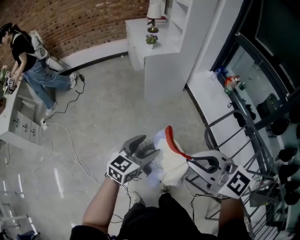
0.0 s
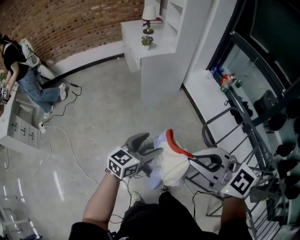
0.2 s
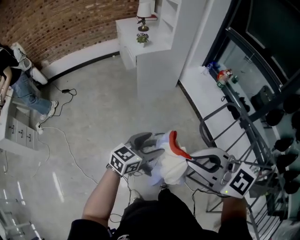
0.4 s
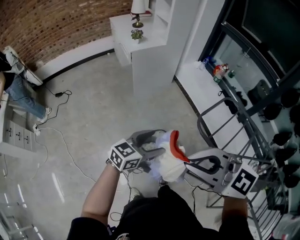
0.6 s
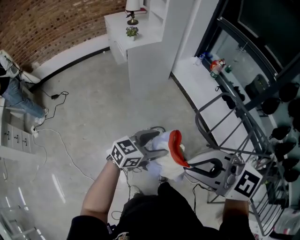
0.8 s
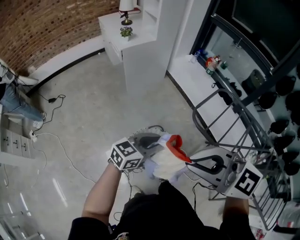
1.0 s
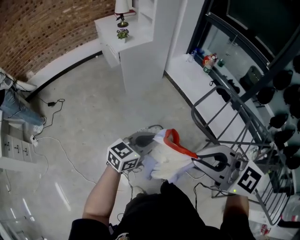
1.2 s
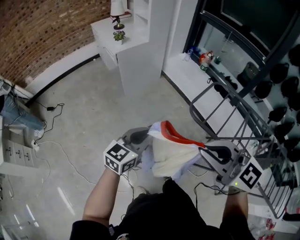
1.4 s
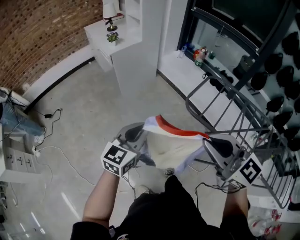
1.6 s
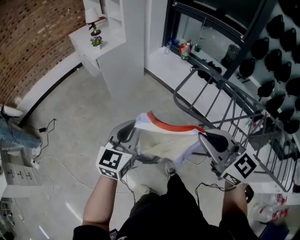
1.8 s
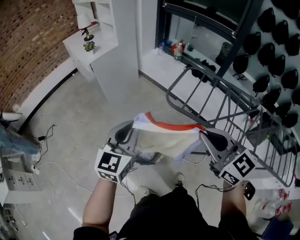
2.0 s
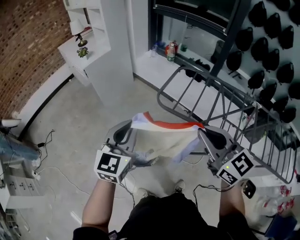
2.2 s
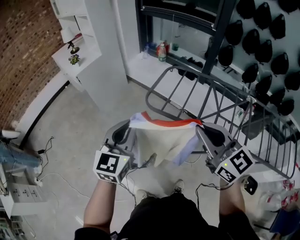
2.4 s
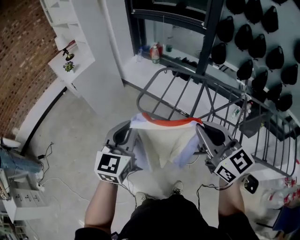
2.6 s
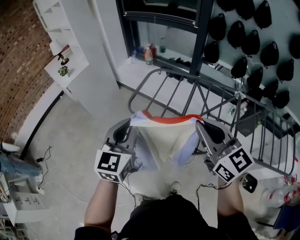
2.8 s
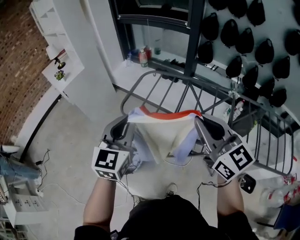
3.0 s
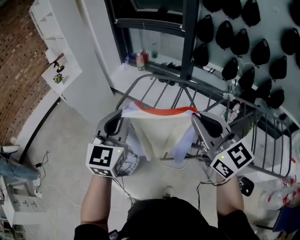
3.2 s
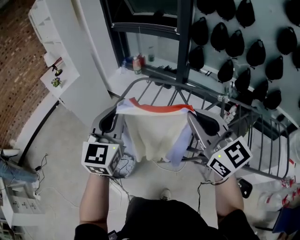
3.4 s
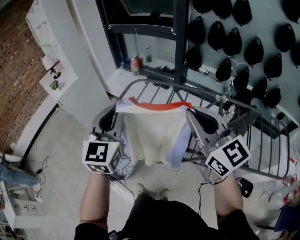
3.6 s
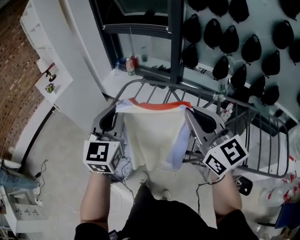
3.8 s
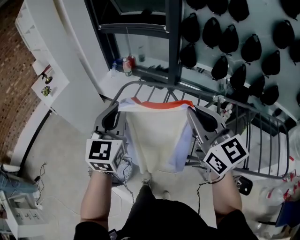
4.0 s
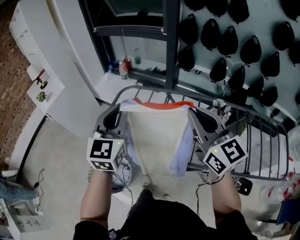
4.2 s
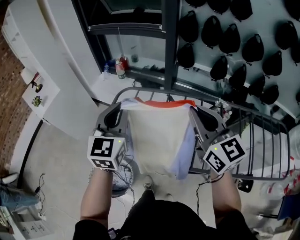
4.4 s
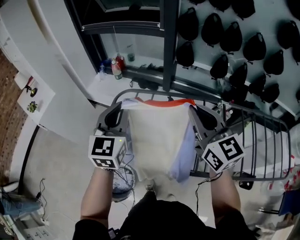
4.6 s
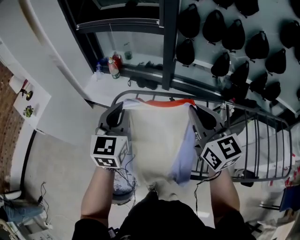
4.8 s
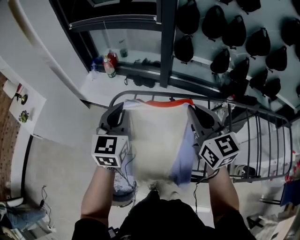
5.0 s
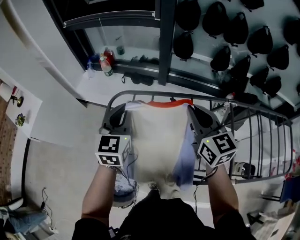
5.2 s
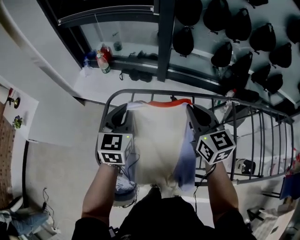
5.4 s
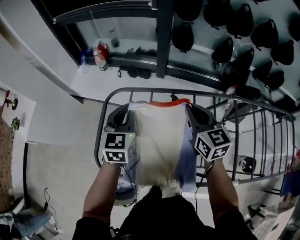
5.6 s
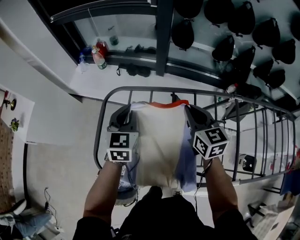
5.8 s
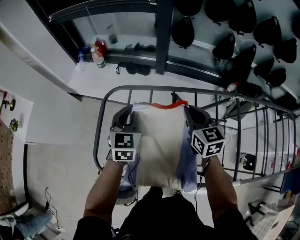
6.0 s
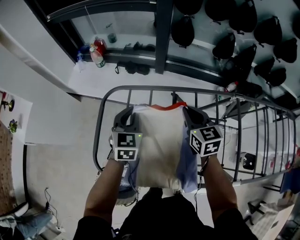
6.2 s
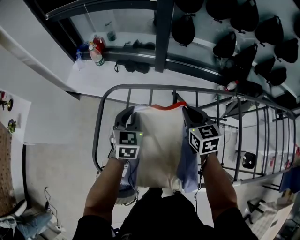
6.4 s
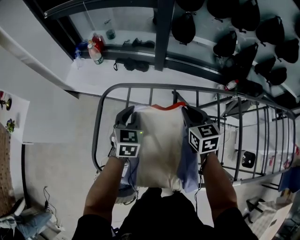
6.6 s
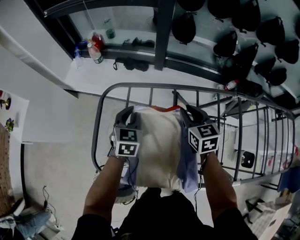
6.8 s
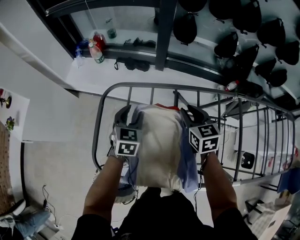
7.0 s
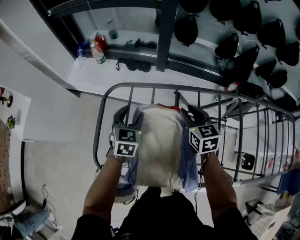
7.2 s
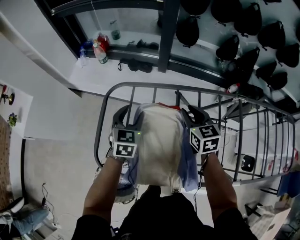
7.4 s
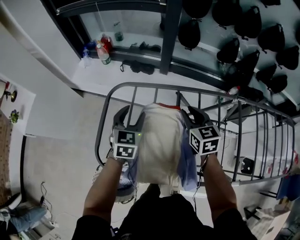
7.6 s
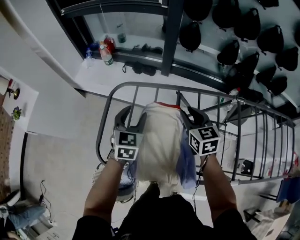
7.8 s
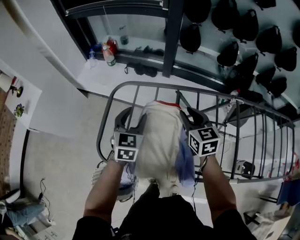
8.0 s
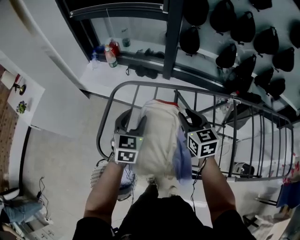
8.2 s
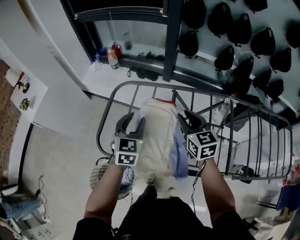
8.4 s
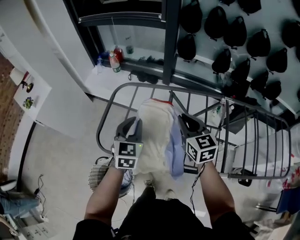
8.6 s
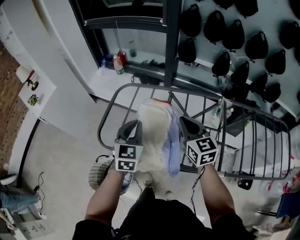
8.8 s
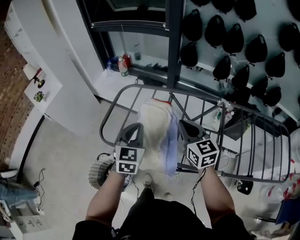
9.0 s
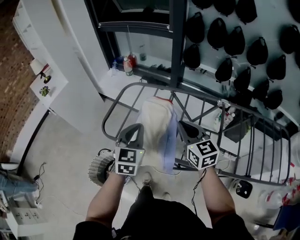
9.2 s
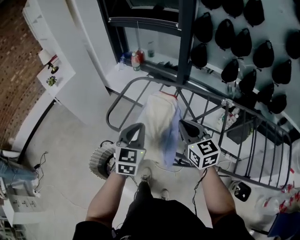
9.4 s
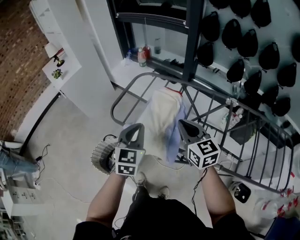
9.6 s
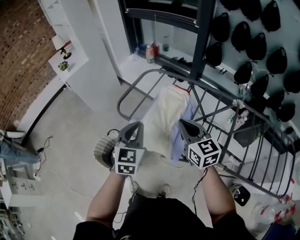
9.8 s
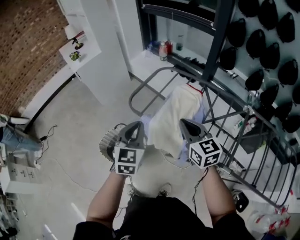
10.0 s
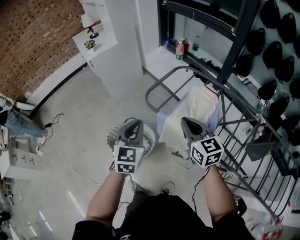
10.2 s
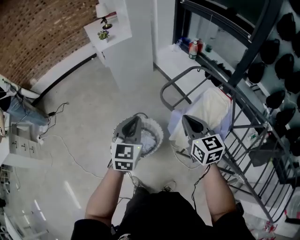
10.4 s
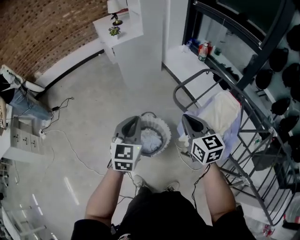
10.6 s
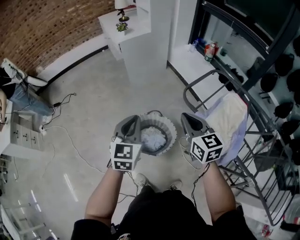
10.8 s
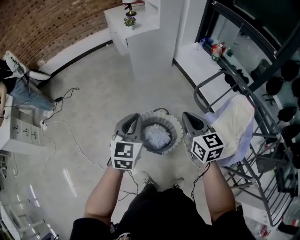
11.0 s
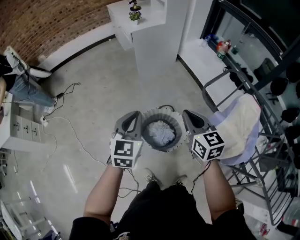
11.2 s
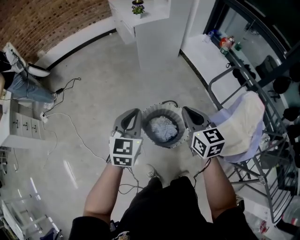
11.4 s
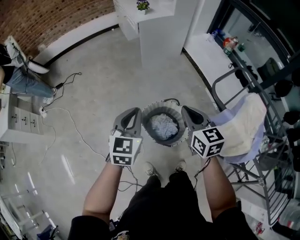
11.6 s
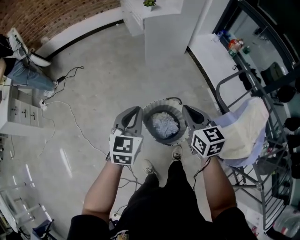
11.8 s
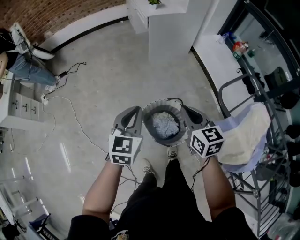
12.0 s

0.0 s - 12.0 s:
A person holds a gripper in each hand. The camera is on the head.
0.0 s - 1.6 s: The right gripper shifts by approximately 10 cm, and swivels some 30 degrees, while the left gripper is displaced upward by about 5 cm, and closes its fingers.
1.6 s - 3.0 s: Both grippers move to the right, some 35 cm. The right gripper changes its angle by some 30 degrees.
3.0 s - 4.4 s: Both grippers move forward and to the right, about 20 cm.
4.4 s - 6.0 s: Both grippers move downward and forward, roughly 35 cm. The left gripper turns by about 20 degrees; the right gripper rotates about 30 degrees.
6.0 s - 7.6 s: The left gripper opens; the right gripper opens its fingers.
7.6 s - 9.0 s: The grippers both shift backward and upward by some 25 cm. The left gripper closes its fingers. Meanwhile the right gripper changes its angle by about 20 degrees, and closes.
9.0 s - 10.4 s: The left gripper shifts by about 35 cm, and changes its angle by about 30 degrees; the right gripper changes place by roughly 30 cm, and swivels approximately 30 degrees.
10.4 s - 12.0 s: The right gripper heads to the left and forward, covering about 30 cm, while the left gripper is displaced to the left by some 30 cm.

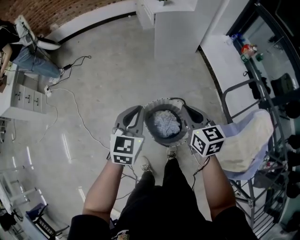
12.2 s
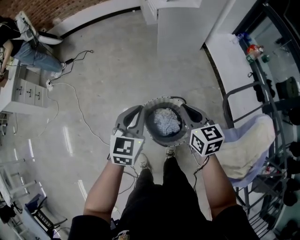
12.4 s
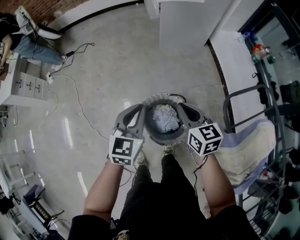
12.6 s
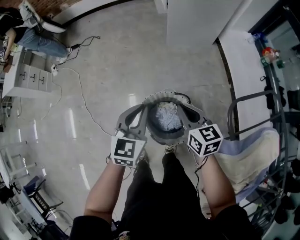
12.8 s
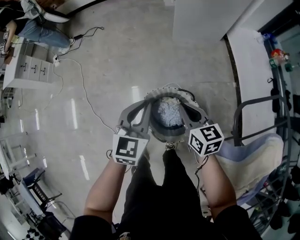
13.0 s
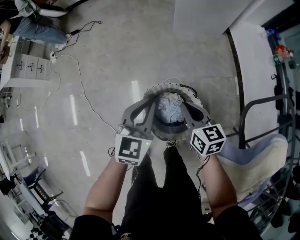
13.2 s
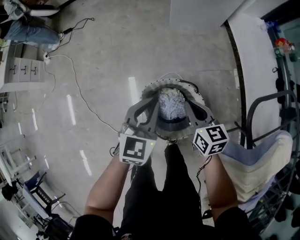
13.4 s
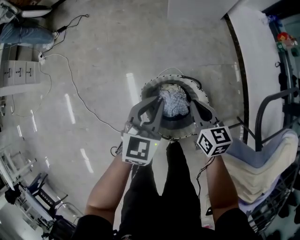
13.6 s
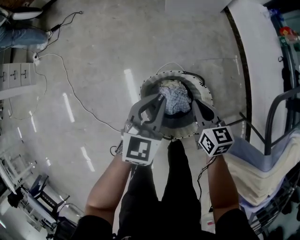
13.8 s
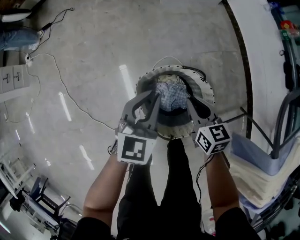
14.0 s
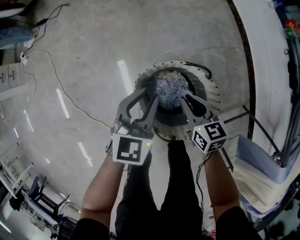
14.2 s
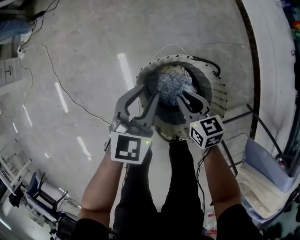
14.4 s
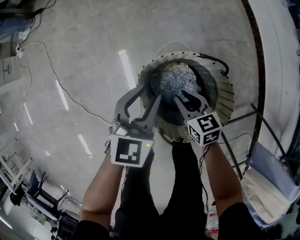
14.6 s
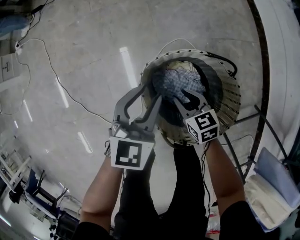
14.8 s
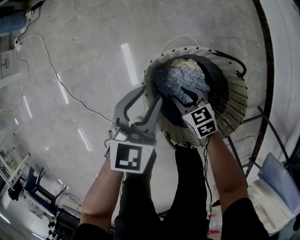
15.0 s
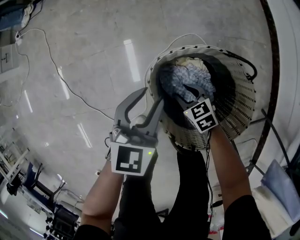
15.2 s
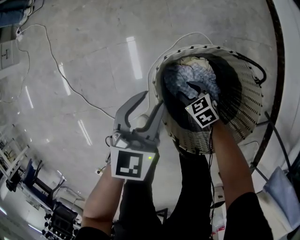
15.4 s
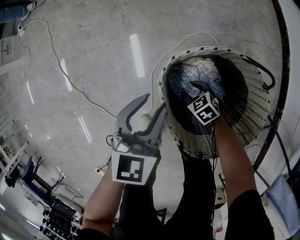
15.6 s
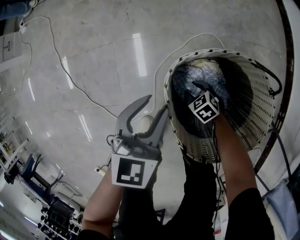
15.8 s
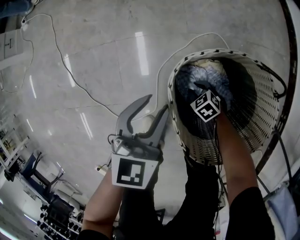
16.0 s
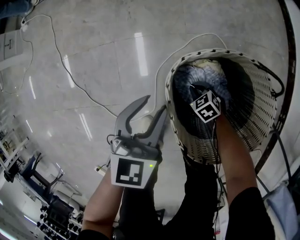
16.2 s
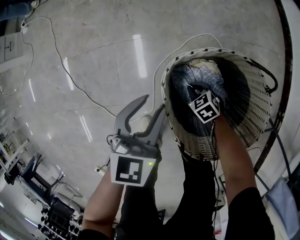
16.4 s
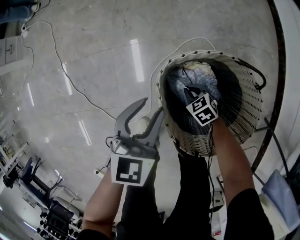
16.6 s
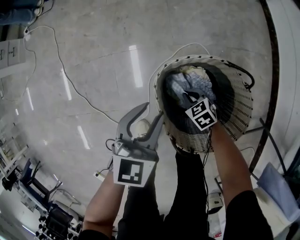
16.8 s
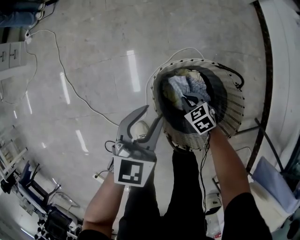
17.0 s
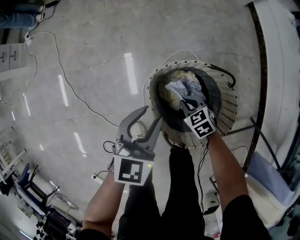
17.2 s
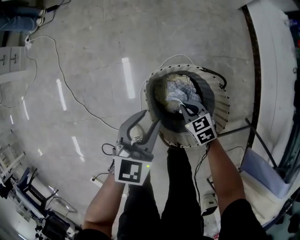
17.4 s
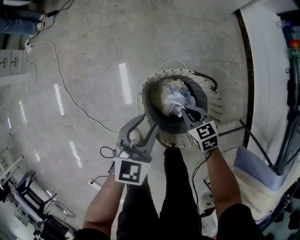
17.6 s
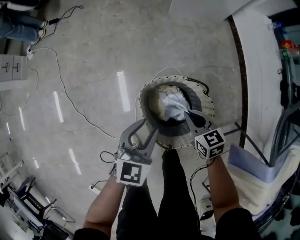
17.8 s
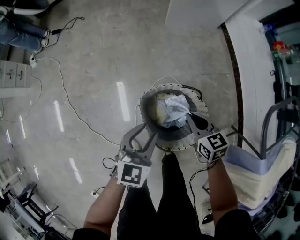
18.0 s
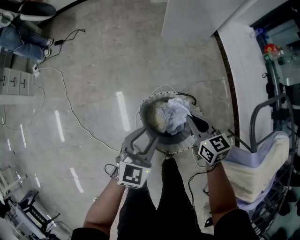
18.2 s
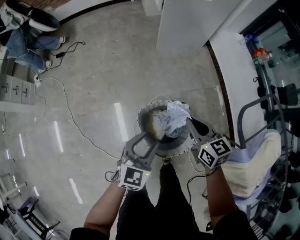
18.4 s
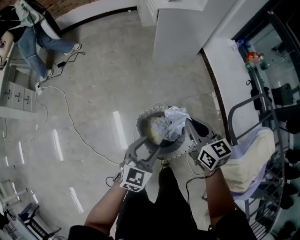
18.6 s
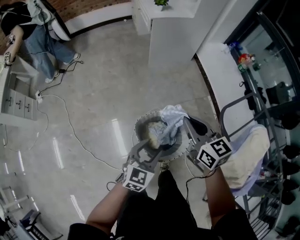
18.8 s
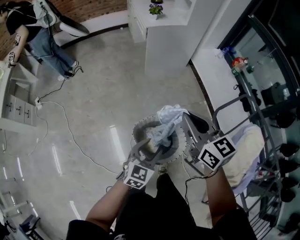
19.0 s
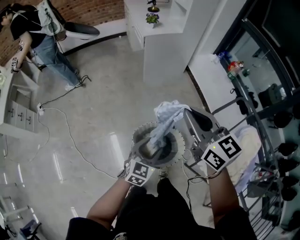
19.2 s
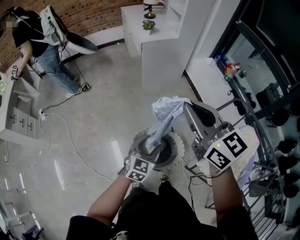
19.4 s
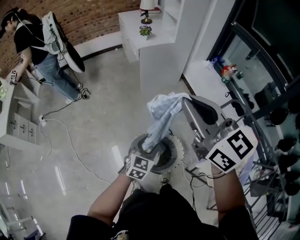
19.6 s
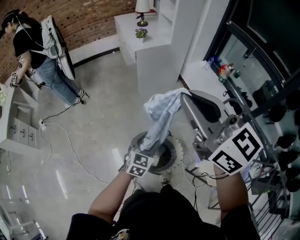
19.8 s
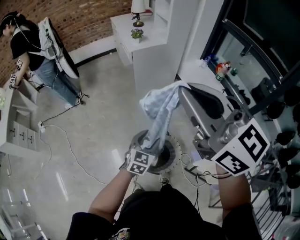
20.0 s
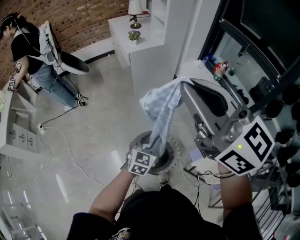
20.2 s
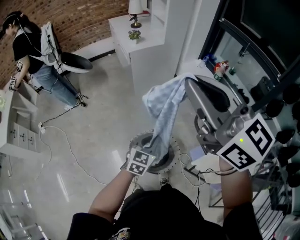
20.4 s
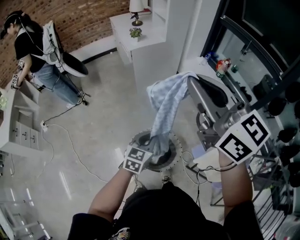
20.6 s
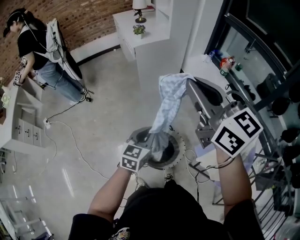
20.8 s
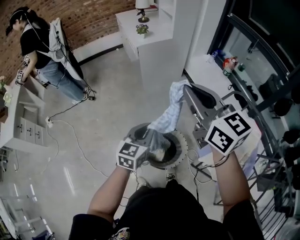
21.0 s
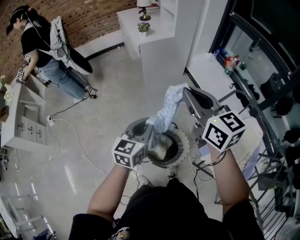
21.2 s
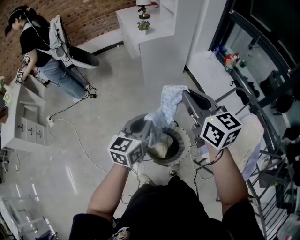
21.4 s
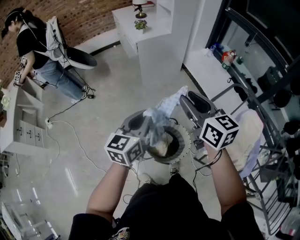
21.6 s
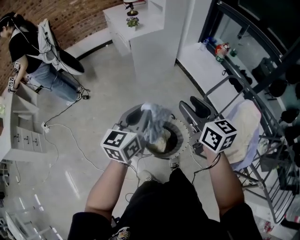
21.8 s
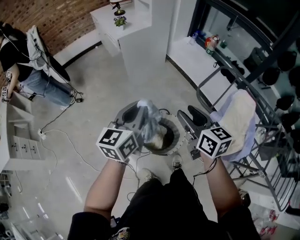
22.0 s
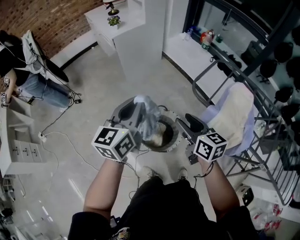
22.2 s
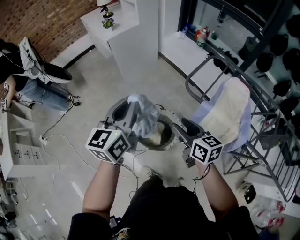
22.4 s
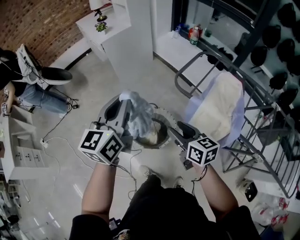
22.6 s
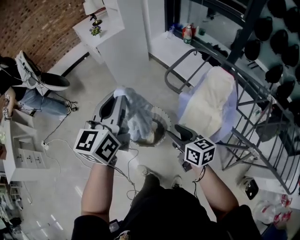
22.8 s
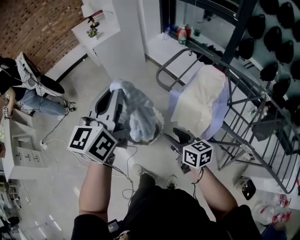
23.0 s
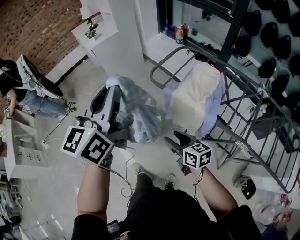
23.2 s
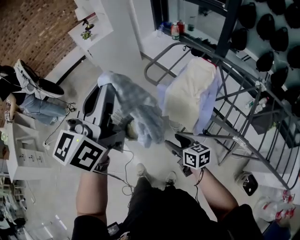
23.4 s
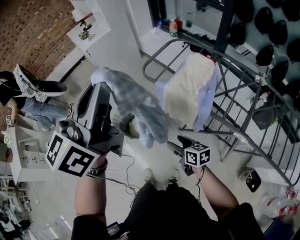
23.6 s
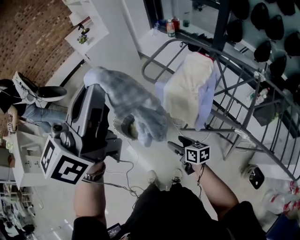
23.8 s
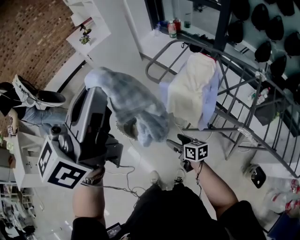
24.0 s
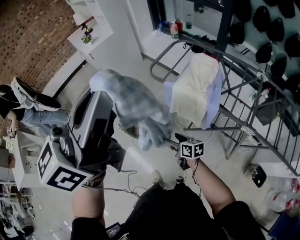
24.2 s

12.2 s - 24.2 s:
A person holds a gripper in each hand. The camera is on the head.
12.2 s - 13.8 s: The grippers both shift downward by some 25 cm.
13.8 s - 15.2 s: The right gripper goes approximately 35 cm downward, rotates approximately 40 degrees, and opens up; the left gripper is displaced downward and to the left by roughly 25 cm, and opens up.
15.2 s - 16.6 s: The right gripper travels downward by approximately 5 cm, and closes its fingers.
16.6 s - 18.2 s: The right gripper moves upward, some 50 cm, and points its fingers roughly 30 degrees further upward, while the left gripper heads upward, covering some 30 cm.
18.2 s - 19.8 s: The right gripper moves upward, approximately 60 cm, and points its fingers about 30 degrees further upward; the left gripper moves upward and to the right, approximately 20 cm.
19.8 s - 21.2 s: The right gripper moves downward, approximately 10 cm; the left gripper goes some 10 cm upward, and closes up.
21.2 s - 22.6 s: The left gripper travels upward, backward and to the right by some 15 cm, while the right gripper moves backward, downward and to the right, some 30 cm, swivels some 30 degrees, and opens up.
22.6 s - 24.2 s: The left gripper heads backward, upward and to the right, covering some 35 cm, and turns by some 30 degrees, while the right gripper shifts approximately 25 cm downward, backward and to the right.
